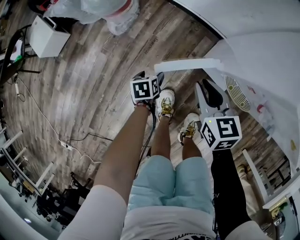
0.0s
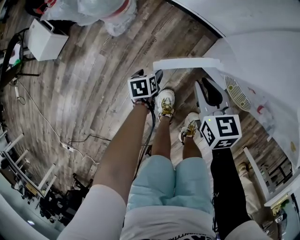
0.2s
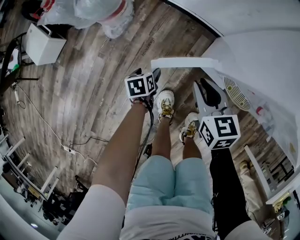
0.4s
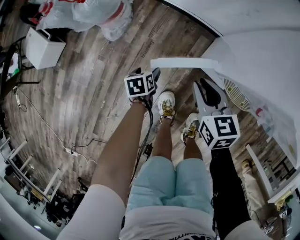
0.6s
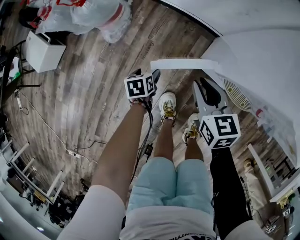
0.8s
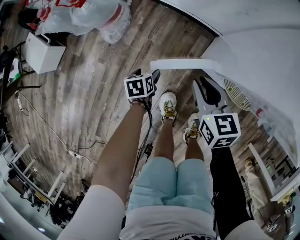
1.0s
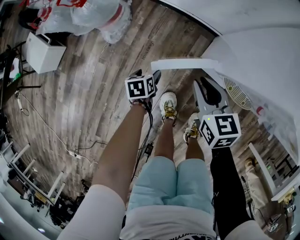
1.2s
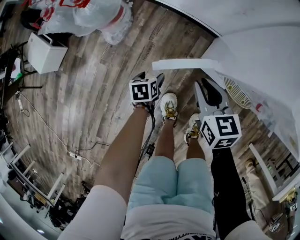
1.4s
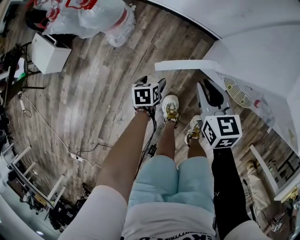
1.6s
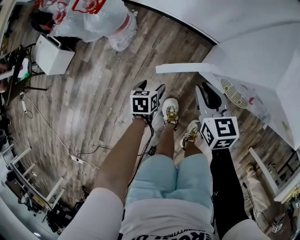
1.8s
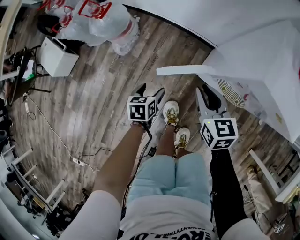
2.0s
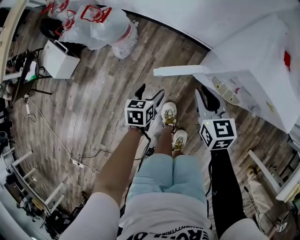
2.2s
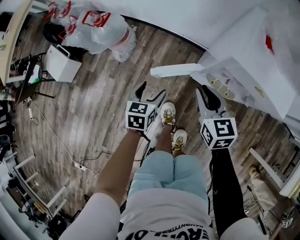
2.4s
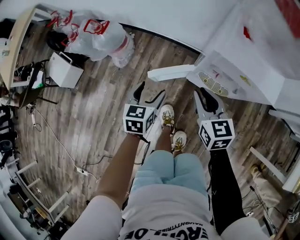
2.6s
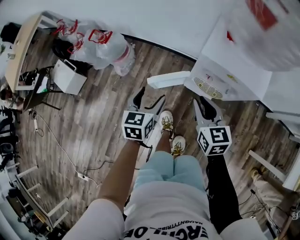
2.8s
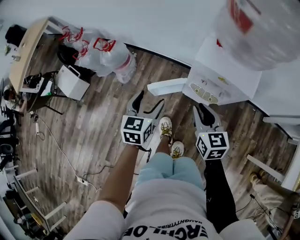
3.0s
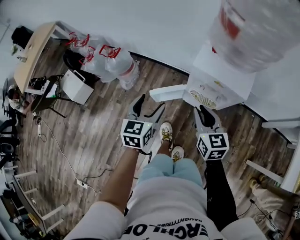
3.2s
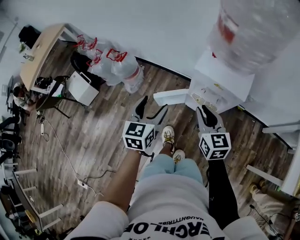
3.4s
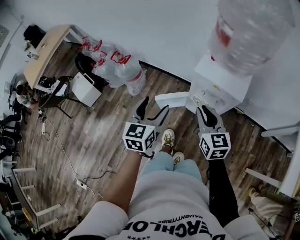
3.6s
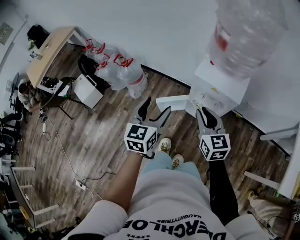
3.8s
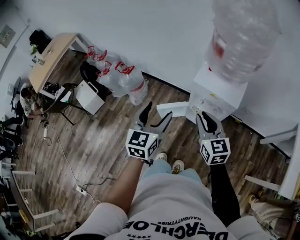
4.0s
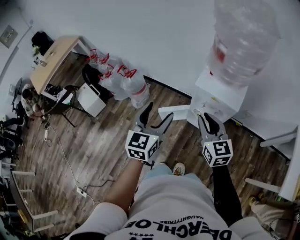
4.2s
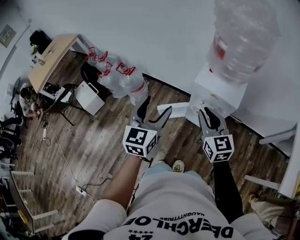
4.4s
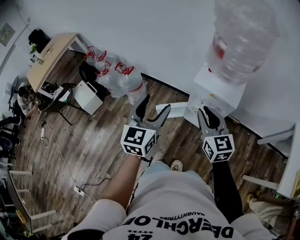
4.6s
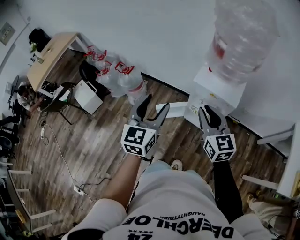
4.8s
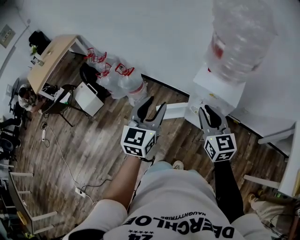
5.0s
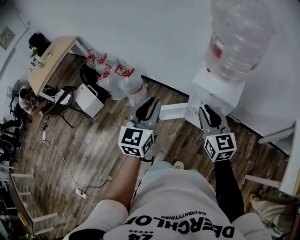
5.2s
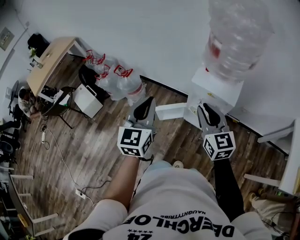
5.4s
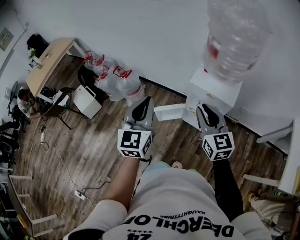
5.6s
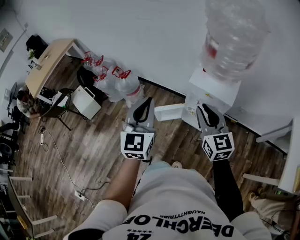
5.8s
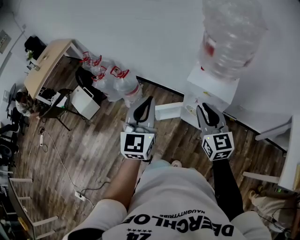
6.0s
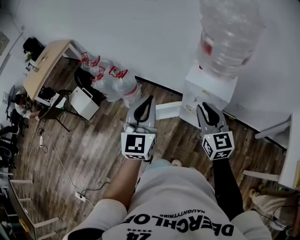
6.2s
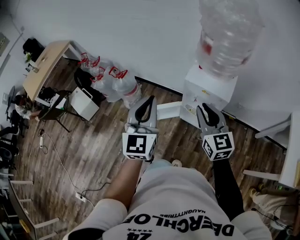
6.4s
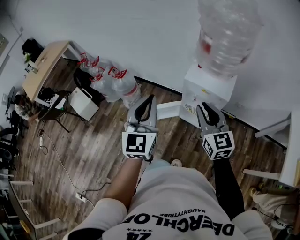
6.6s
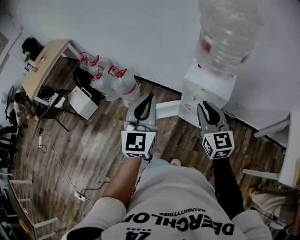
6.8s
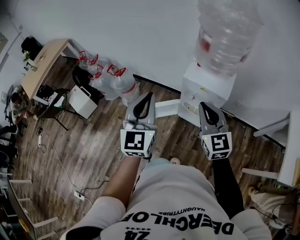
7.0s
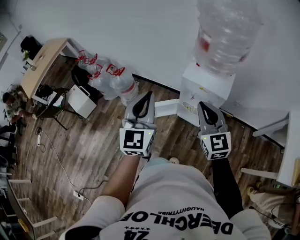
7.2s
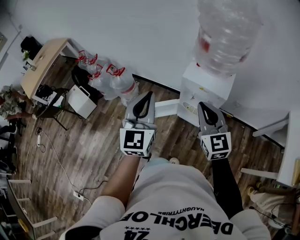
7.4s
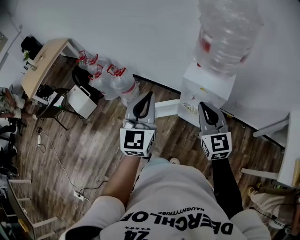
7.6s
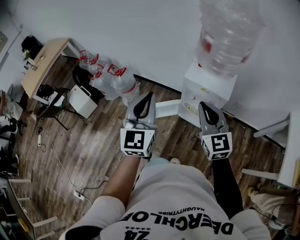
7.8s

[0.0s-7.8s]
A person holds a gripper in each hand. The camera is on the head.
0.0s to 1.6s: The grippers stay close to where they were, moving slightly.
1.6s to 3.2s: The left gripper moves upward, approximately 50 cm, and points its fingers approximately 40 degrees further upward. Meanwhile the right gripper moves upward, backward and to the right, about 30 cm.
3.2s to 4.6s: The grippers both shift upward by approximately 15 cm.
4.6s to 6.2s: The left gripper ends up roughly 5 cm from where it was, and closes.
6.2s to 7.8s: The grippers stay close to where they were, moving slightly.

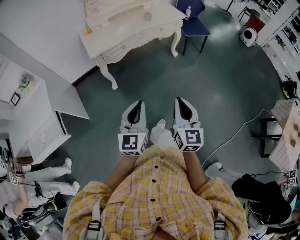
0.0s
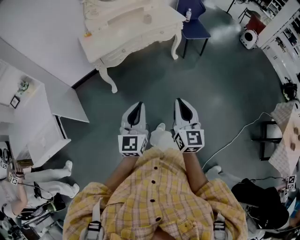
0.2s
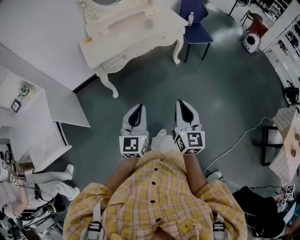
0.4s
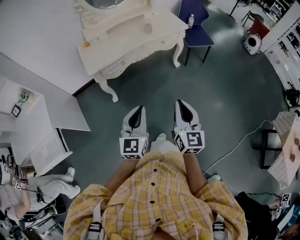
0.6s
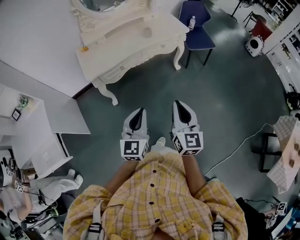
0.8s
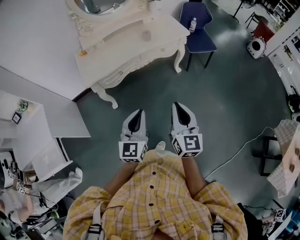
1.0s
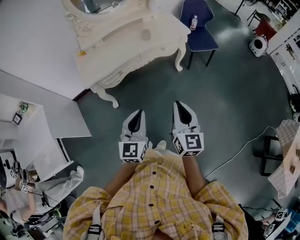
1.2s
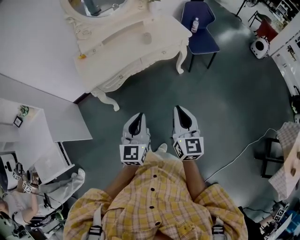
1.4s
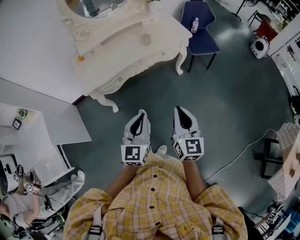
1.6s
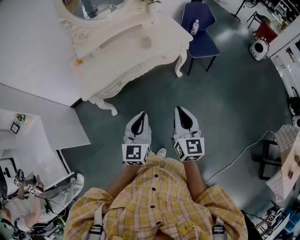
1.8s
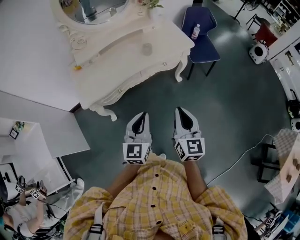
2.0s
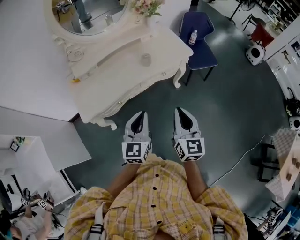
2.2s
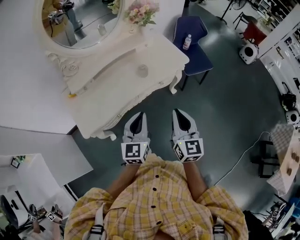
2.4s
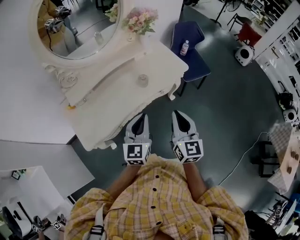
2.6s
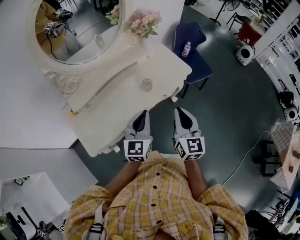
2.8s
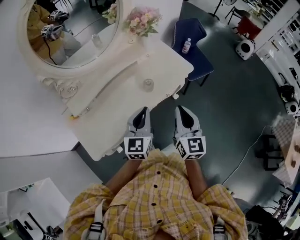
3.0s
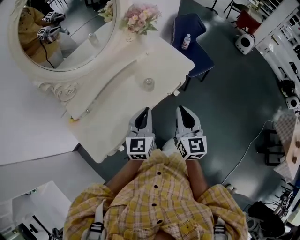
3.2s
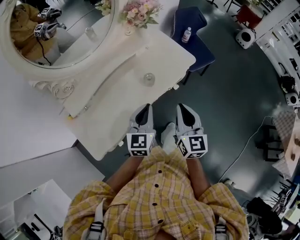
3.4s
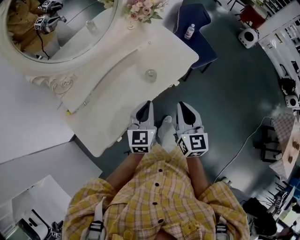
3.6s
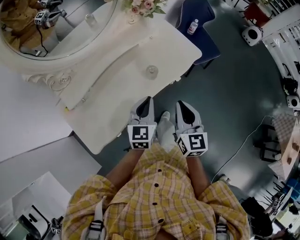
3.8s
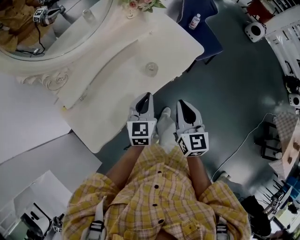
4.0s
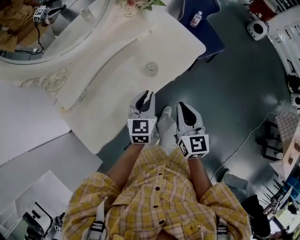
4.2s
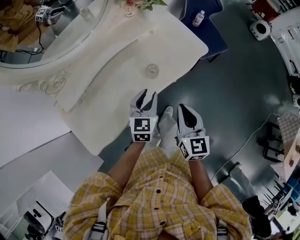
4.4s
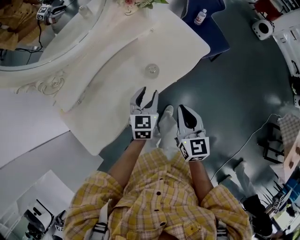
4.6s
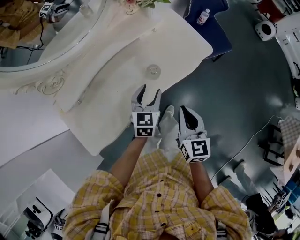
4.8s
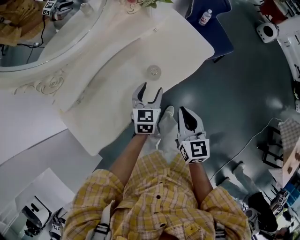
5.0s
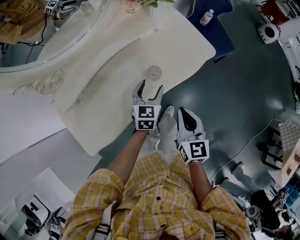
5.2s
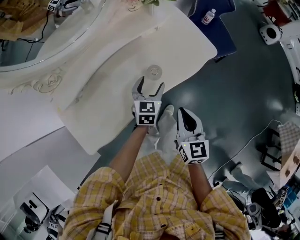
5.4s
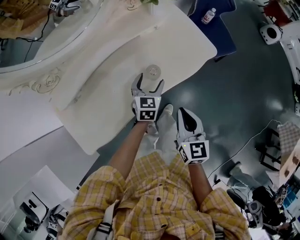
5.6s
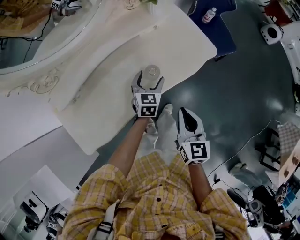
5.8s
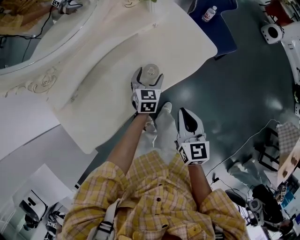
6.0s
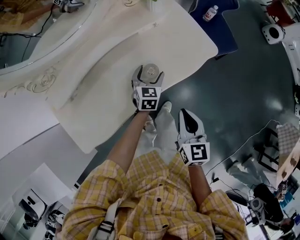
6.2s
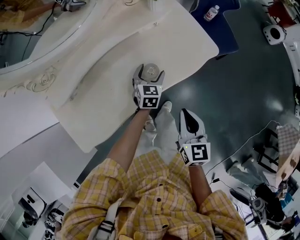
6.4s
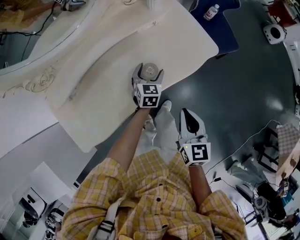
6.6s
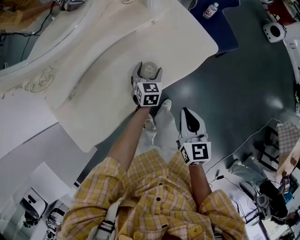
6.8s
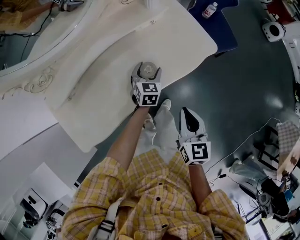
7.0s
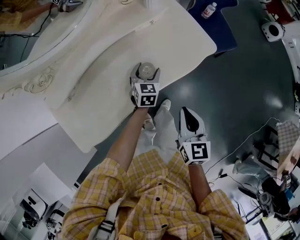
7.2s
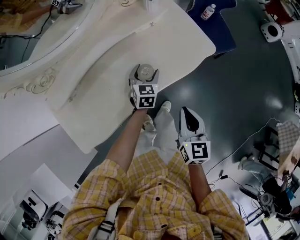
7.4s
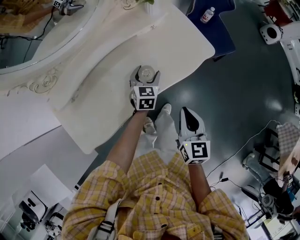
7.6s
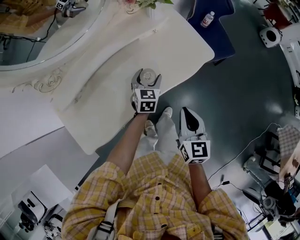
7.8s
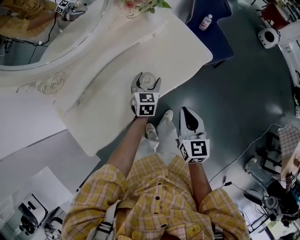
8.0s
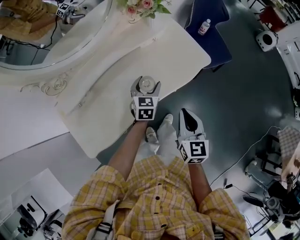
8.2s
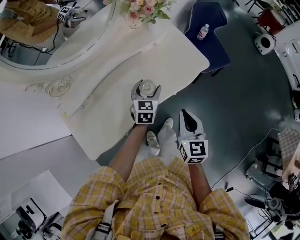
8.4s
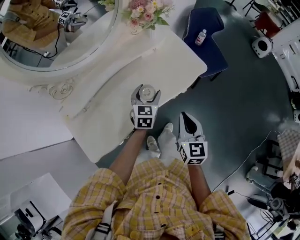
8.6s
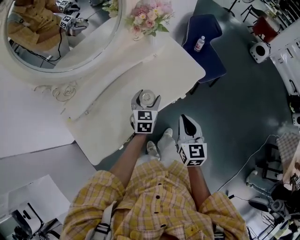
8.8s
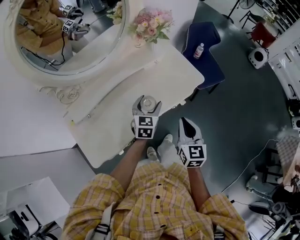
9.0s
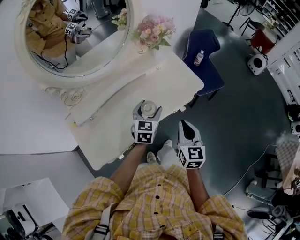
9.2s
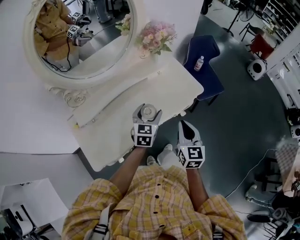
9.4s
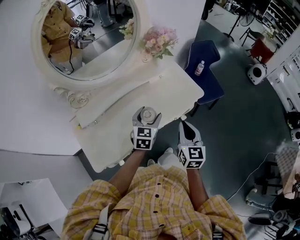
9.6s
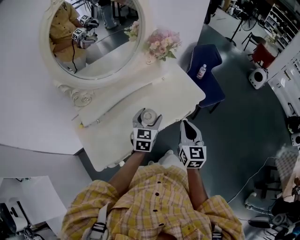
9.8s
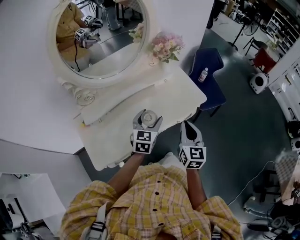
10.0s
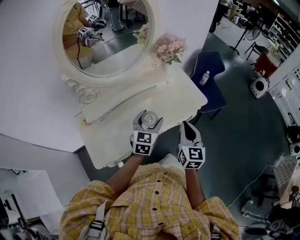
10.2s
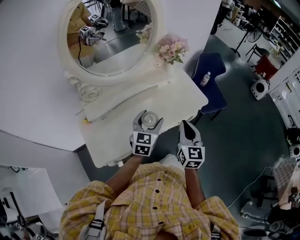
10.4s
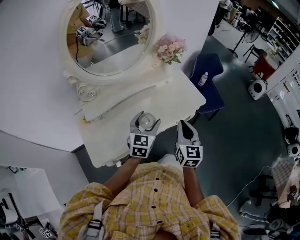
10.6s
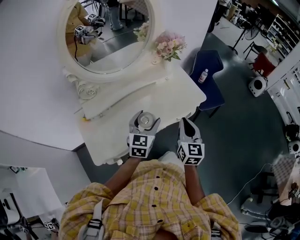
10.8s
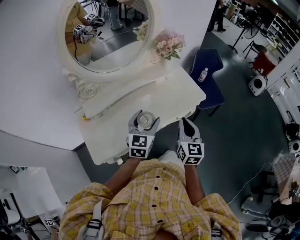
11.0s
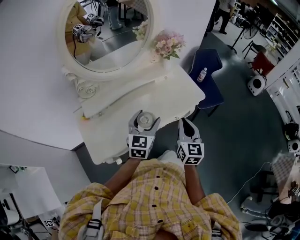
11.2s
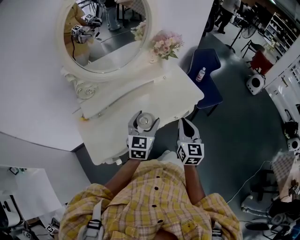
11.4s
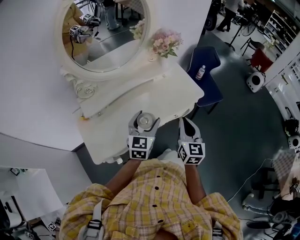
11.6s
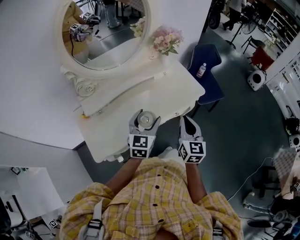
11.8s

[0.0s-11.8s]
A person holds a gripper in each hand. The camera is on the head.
0.0s to 1.4s: The grippers both shift forward by roughly 25 cm.
1.4s to 3.0s: Both grippers move forward, roughly 35 cm.
3.0s to 4.4s: The right gripper heads downward, covering about 10 cm; the left gripper shifts about 15 cm downward and forward.
4.4s to 6.0s: The right gripper heads downward, covering roughly 5 cm. The left gripper is displaced downward and forward by about 15 cm, and opens.
6.0s to 7.4s: There are only small adjustments of the grippers.
7.4s to 8.8s: The right gripper travels upward by roughly 5 cm; the left gripper is displaced upward by roughly 15 cm.
8.8s to 10.4s: The right gripper travels upward by about 10 cm. The left gripper is displaced upward and backward by roughly 15 cm.
10.4s to 11.8s: The left gripper ends up about 5 cm from where it was.

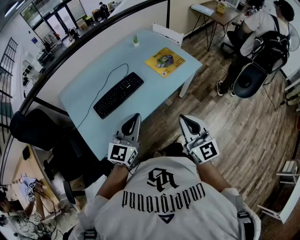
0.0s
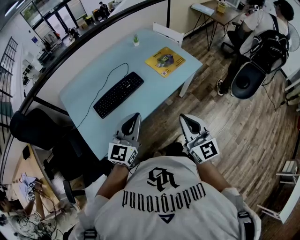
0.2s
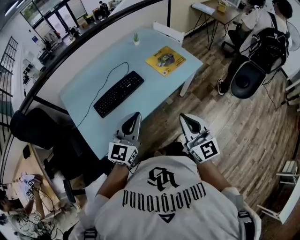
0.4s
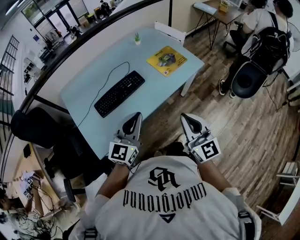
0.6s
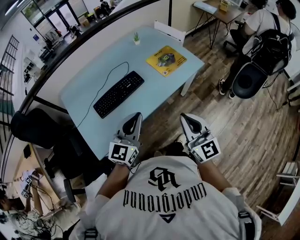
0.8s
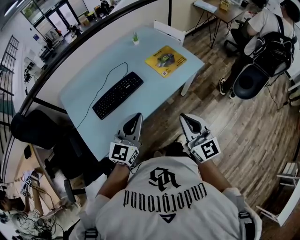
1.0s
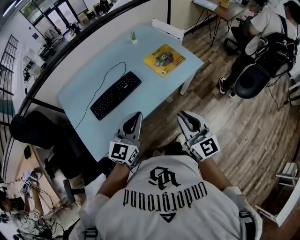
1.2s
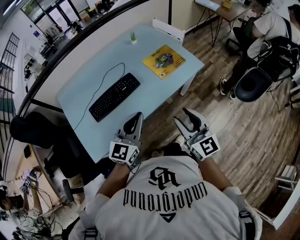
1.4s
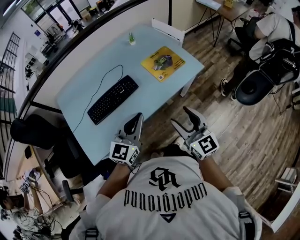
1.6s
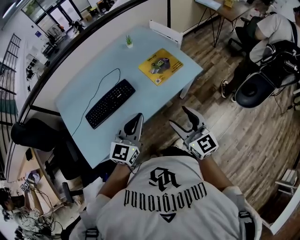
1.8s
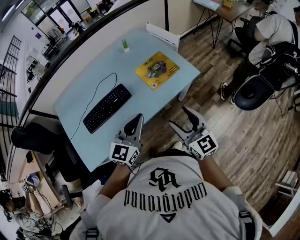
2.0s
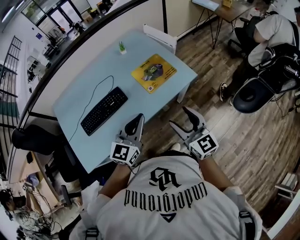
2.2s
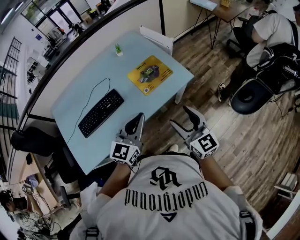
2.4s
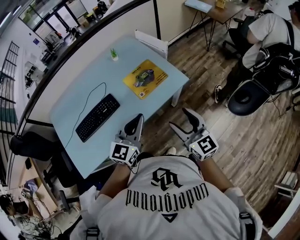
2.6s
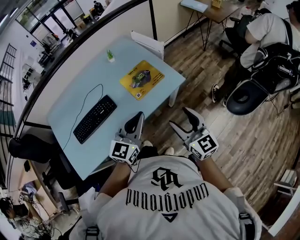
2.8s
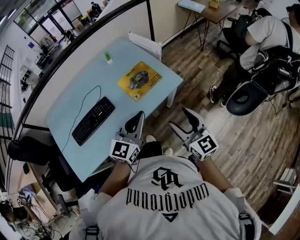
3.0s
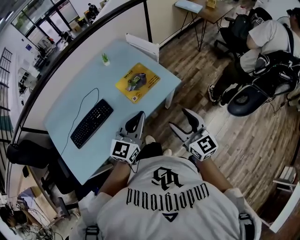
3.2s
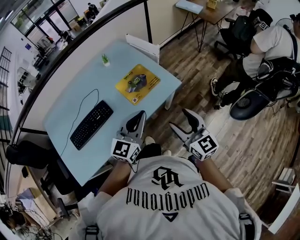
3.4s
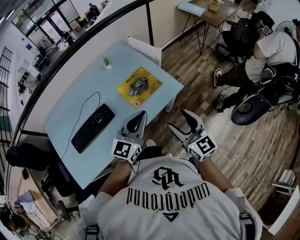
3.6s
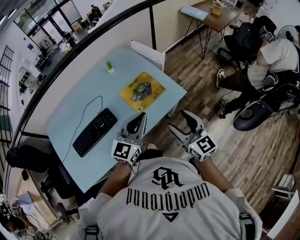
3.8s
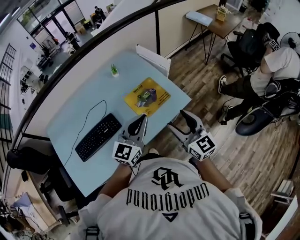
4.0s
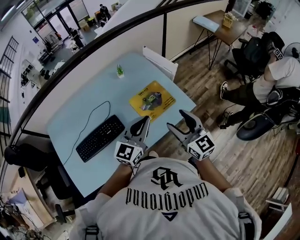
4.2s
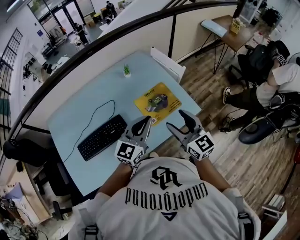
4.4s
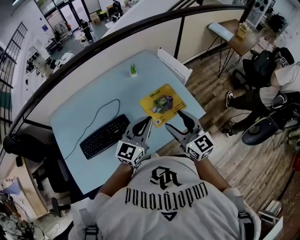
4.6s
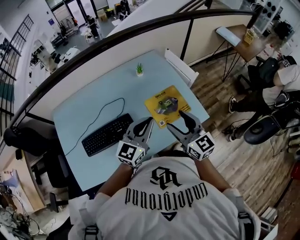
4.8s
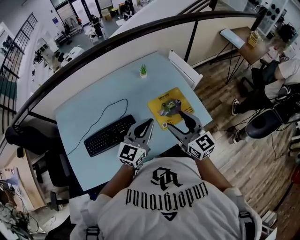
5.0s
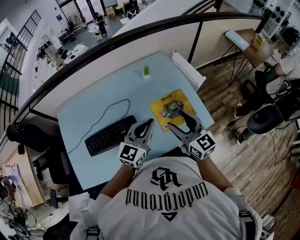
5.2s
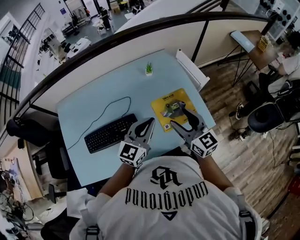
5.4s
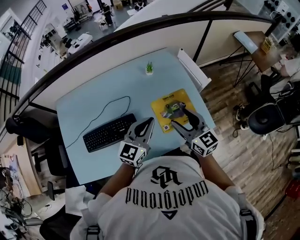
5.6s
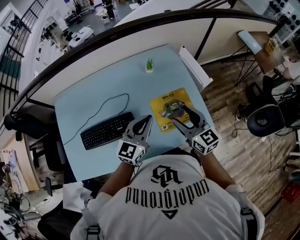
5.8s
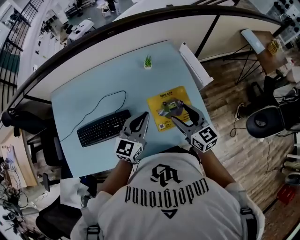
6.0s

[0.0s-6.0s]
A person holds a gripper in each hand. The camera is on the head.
0.0s to 1.6s: The two grippers go approximately 15 cm forward and to the right. The right gripper opens.
1.6s to 3.0s: The grippers both shift to the right and forward by roughly 20 cm.
3.0s to 4.4s: The two grippers go approximately 20 cm forward and to the left.
4.4s to 6.0s: The left gripper is displaced forward, downward and to the left by approximately 15 cm, and turns by about 20 degrees. Meanwhile the right gripper moves forward and downward, roughly 20 cm, and changes its angle by about 20 degrees.
